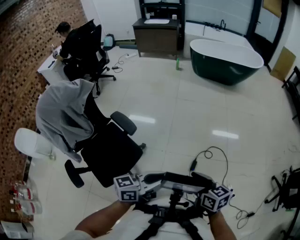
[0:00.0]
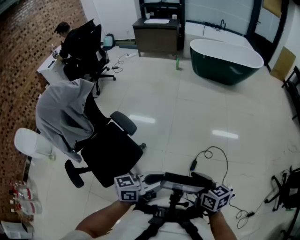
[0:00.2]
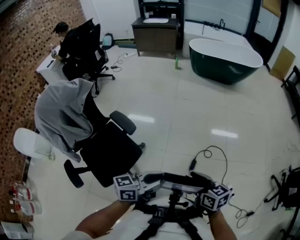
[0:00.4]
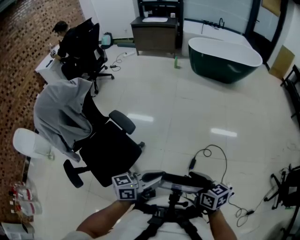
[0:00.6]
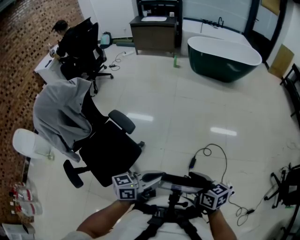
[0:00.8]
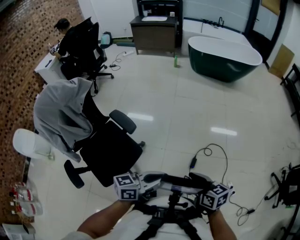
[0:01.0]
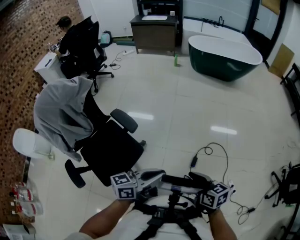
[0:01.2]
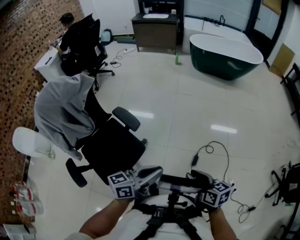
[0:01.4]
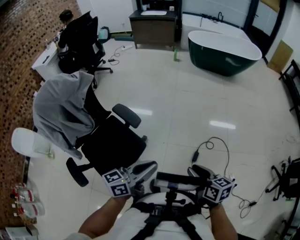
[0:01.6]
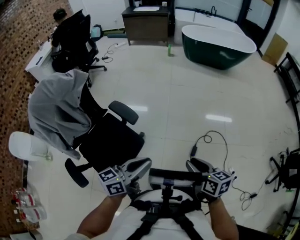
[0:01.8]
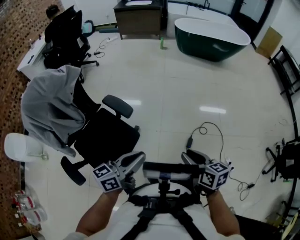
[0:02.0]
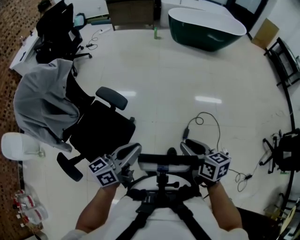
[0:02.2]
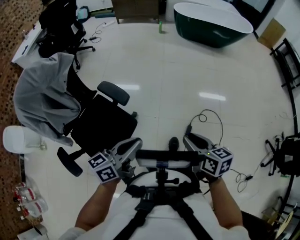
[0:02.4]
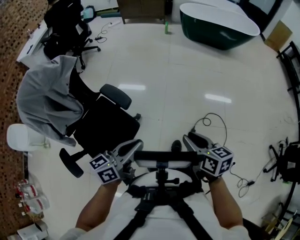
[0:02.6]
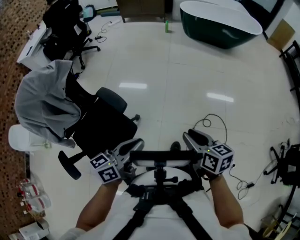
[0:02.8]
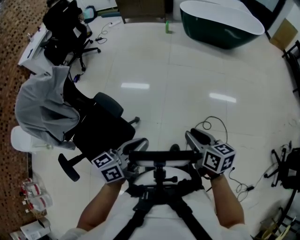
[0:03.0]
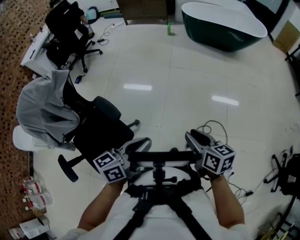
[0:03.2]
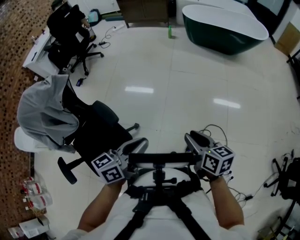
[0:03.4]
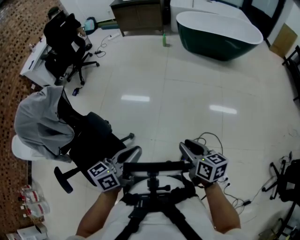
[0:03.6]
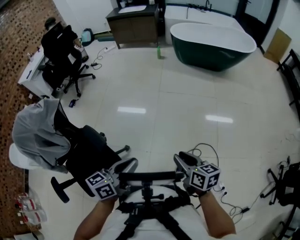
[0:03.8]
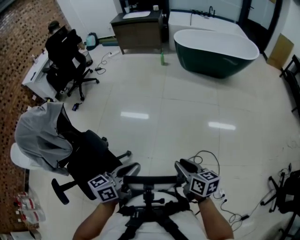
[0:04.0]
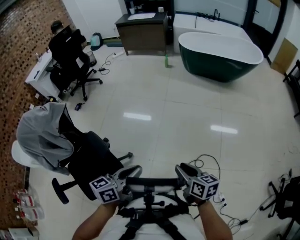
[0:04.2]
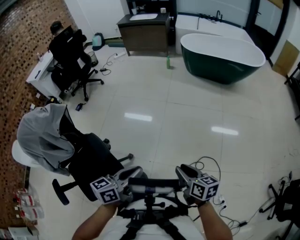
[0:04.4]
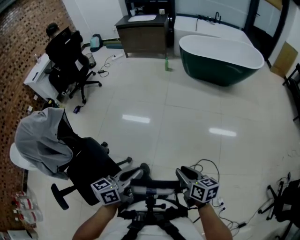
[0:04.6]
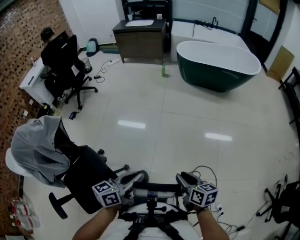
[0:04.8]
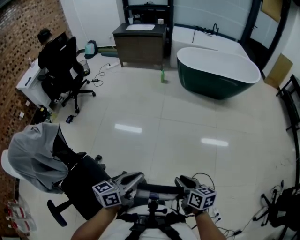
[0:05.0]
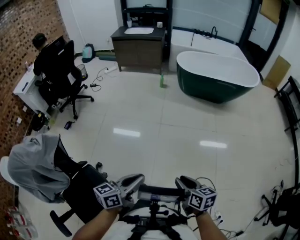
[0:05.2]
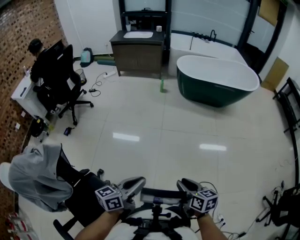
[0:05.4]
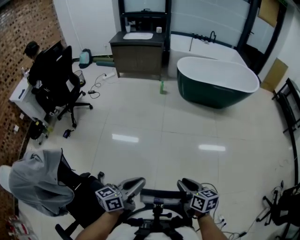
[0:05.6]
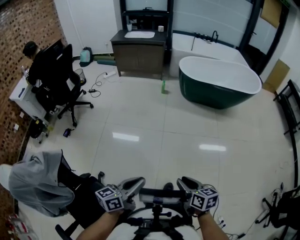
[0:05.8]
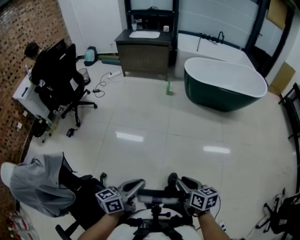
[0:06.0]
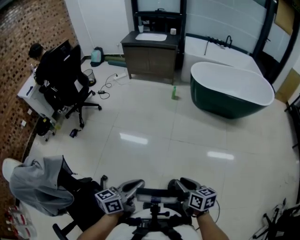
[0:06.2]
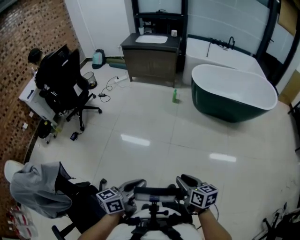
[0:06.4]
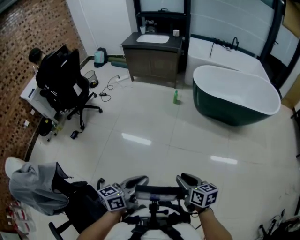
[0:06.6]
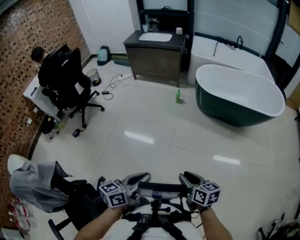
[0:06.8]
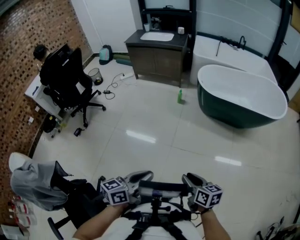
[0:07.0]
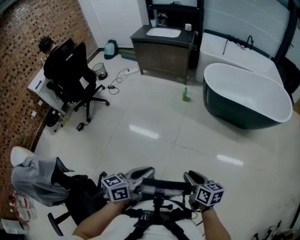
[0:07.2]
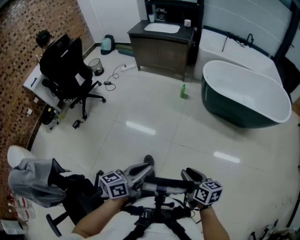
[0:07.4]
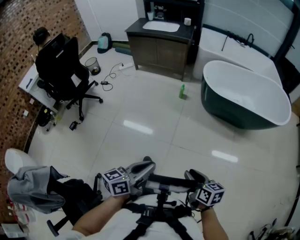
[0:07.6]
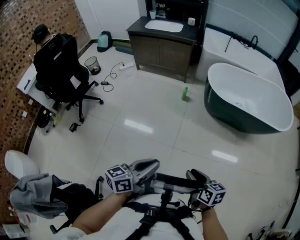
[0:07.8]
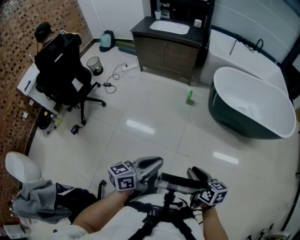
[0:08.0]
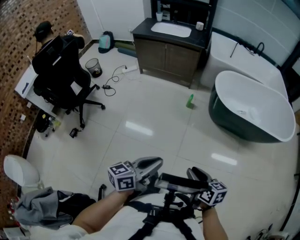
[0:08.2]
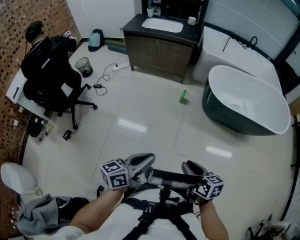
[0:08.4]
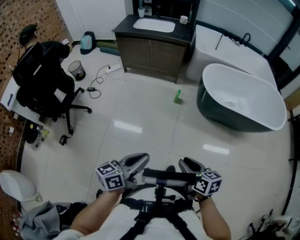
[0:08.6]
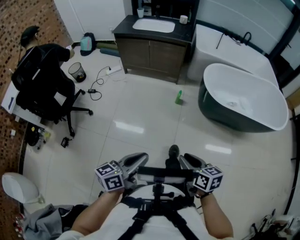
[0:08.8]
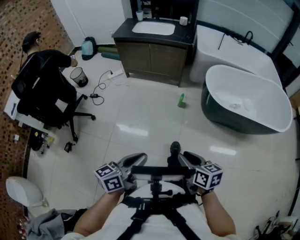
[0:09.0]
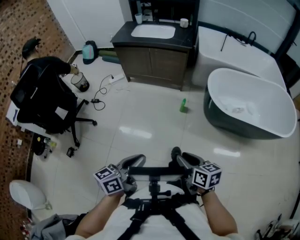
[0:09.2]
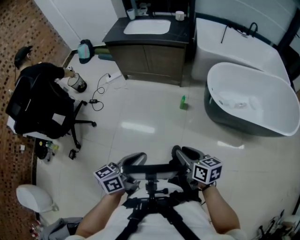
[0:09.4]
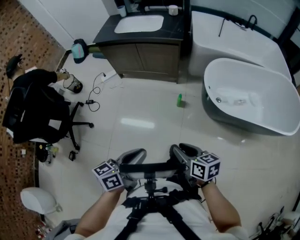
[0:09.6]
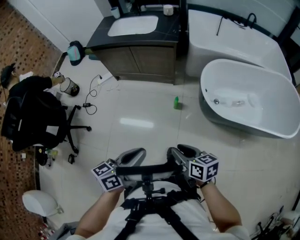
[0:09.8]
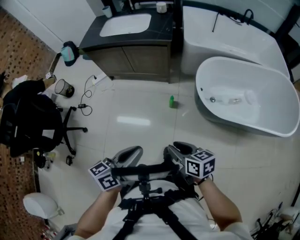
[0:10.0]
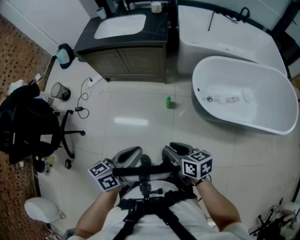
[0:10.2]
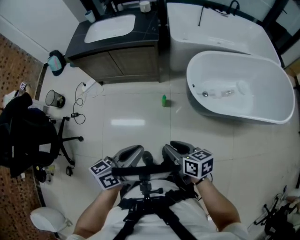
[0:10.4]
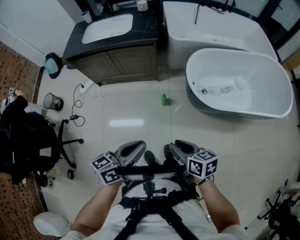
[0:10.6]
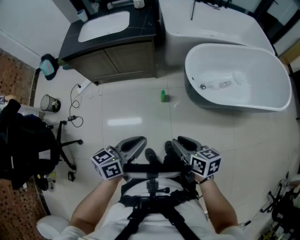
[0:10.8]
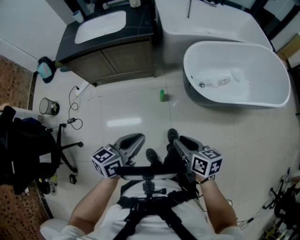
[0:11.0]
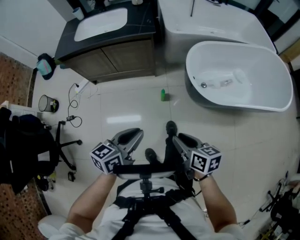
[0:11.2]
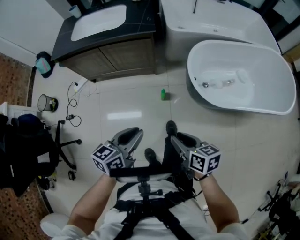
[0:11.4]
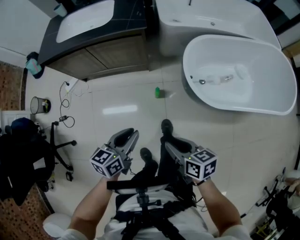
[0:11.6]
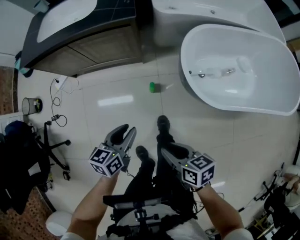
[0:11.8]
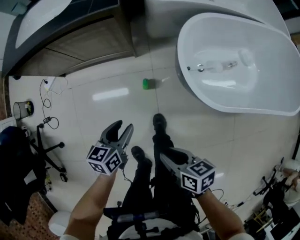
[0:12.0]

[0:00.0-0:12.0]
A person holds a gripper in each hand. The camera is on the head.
0:00.0 to 0:01.6: The left gripper shifts roughly 10 cm to the left.
0:01.6 to 0:03.0: Both grippers travel together forward, about 15 cm.
0:03.0 to 0:04.4: Both grippers travel together forward and to the right, approximately 10 cm.
0:04.4 to 0:06.0: Both grippers travel together forward and to the left, some 30 cm.
0:06.0 to 0:07.6: The two grippers go roughly 30 cm forward.
0:07.6 to 0:09.0: The two grippers go some 30 cm forward and to the left.
0:09.0 to 0:10.4: The grippers both shift forward by roughly 30 cm.
0:10.4 to 0:12.0: The right gripper moves downward and forward, roughly 20 cm. The left gripper heads downward and forward, covering about 35 cm, turns by approximately 30 degrees, and opens its fingers.

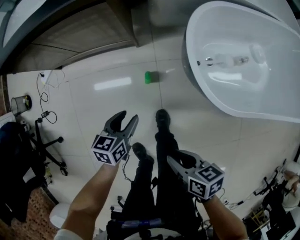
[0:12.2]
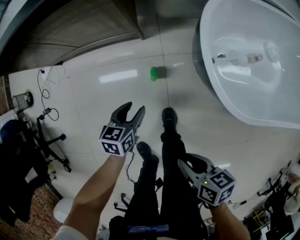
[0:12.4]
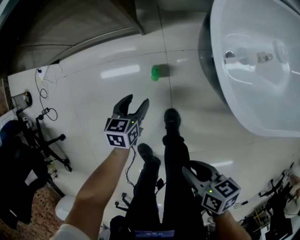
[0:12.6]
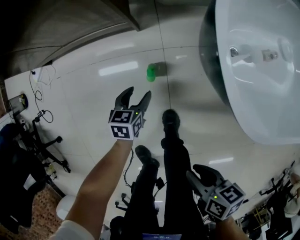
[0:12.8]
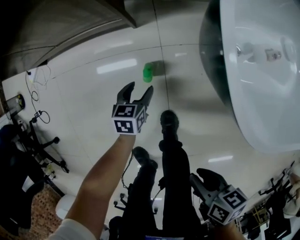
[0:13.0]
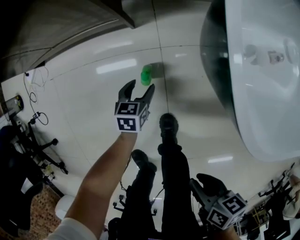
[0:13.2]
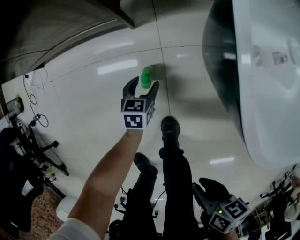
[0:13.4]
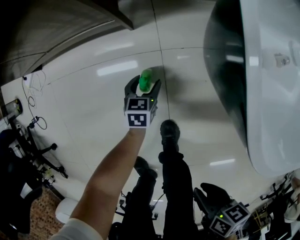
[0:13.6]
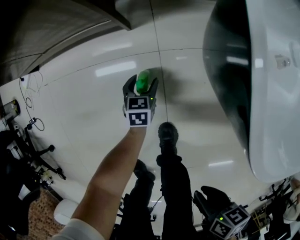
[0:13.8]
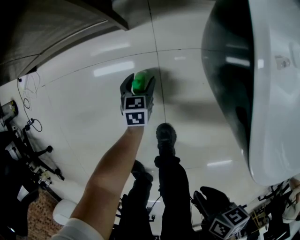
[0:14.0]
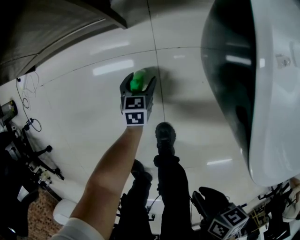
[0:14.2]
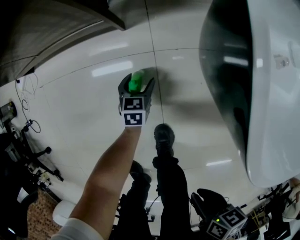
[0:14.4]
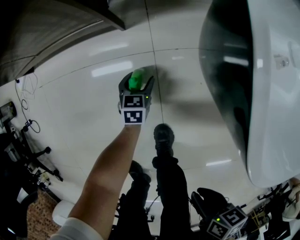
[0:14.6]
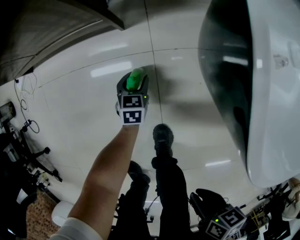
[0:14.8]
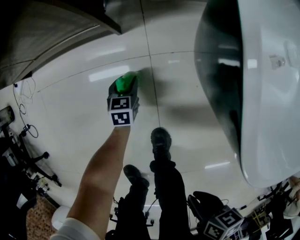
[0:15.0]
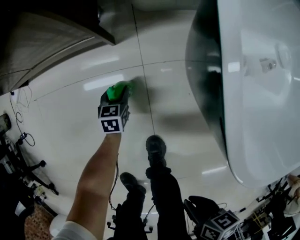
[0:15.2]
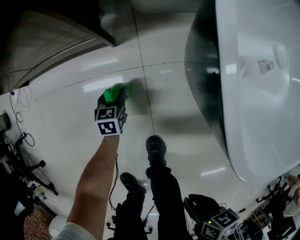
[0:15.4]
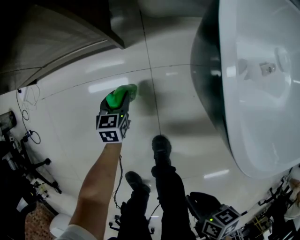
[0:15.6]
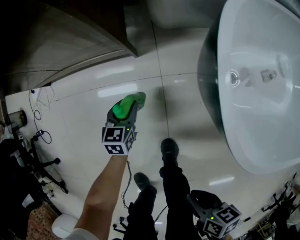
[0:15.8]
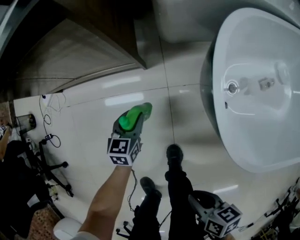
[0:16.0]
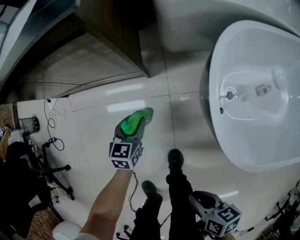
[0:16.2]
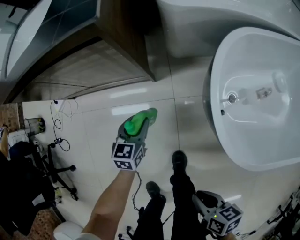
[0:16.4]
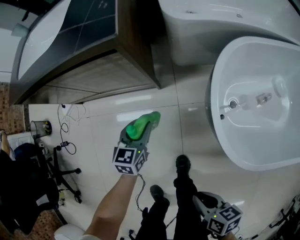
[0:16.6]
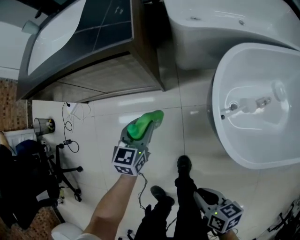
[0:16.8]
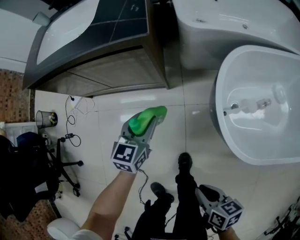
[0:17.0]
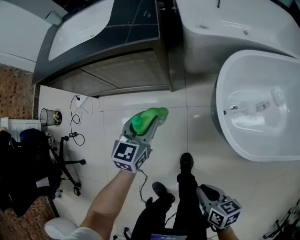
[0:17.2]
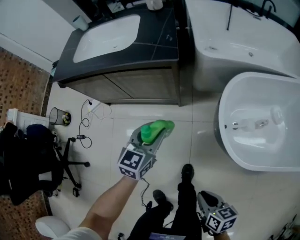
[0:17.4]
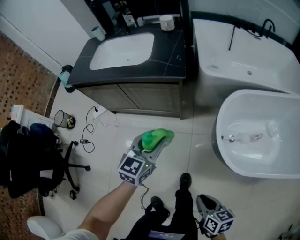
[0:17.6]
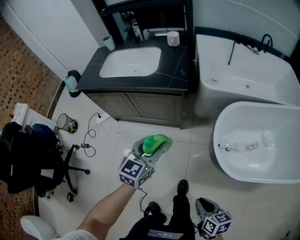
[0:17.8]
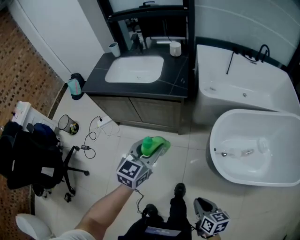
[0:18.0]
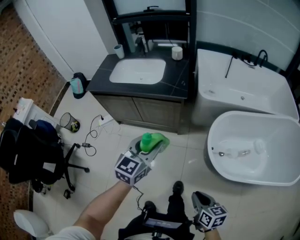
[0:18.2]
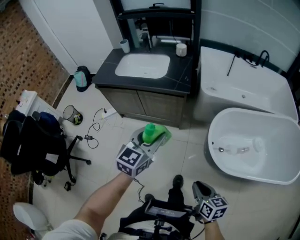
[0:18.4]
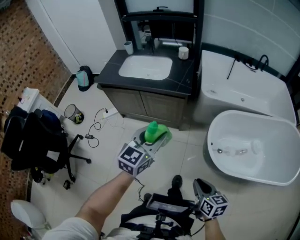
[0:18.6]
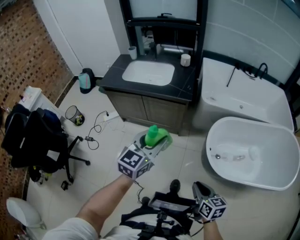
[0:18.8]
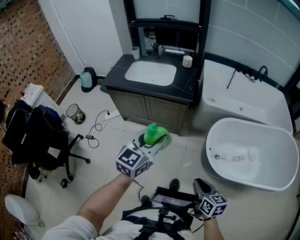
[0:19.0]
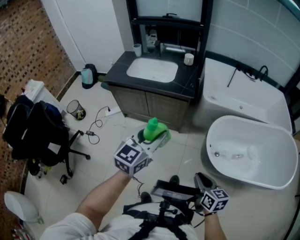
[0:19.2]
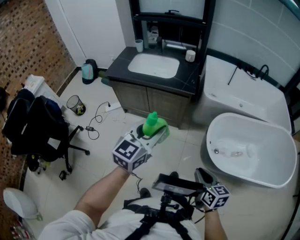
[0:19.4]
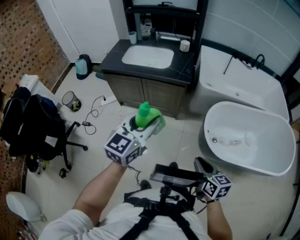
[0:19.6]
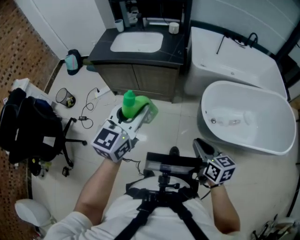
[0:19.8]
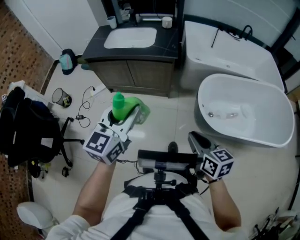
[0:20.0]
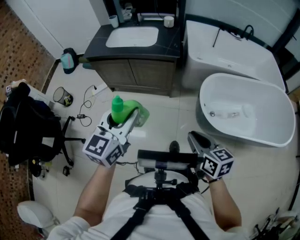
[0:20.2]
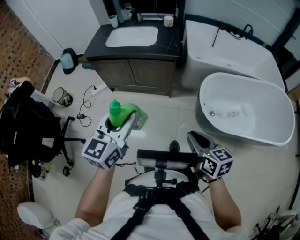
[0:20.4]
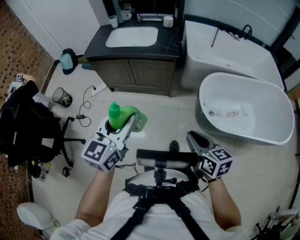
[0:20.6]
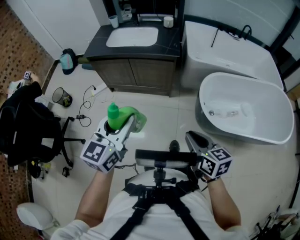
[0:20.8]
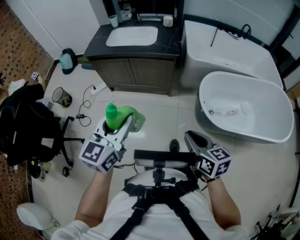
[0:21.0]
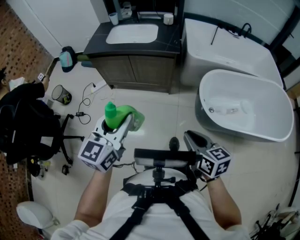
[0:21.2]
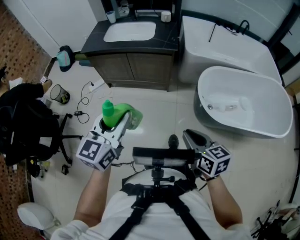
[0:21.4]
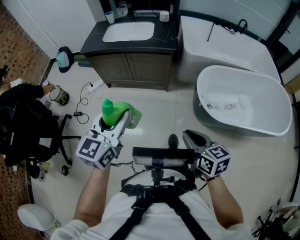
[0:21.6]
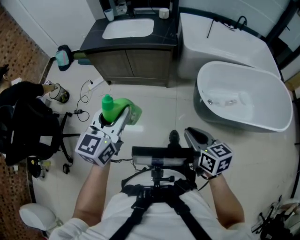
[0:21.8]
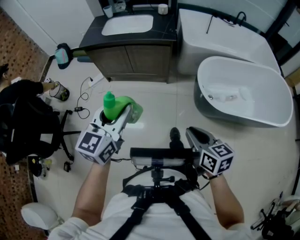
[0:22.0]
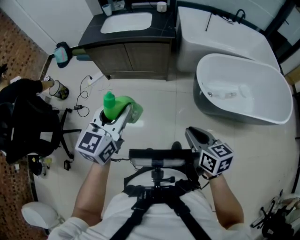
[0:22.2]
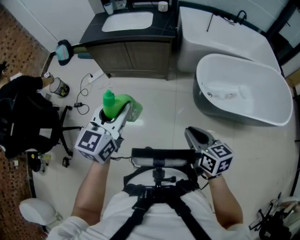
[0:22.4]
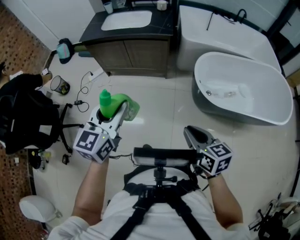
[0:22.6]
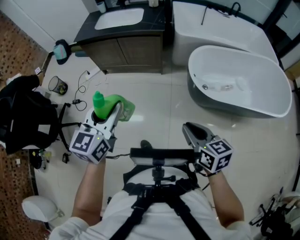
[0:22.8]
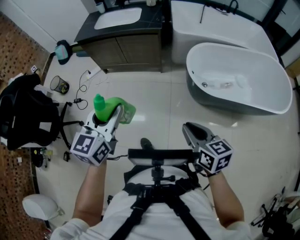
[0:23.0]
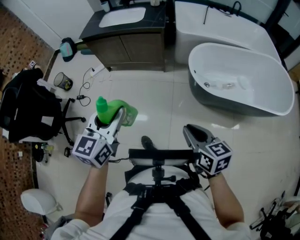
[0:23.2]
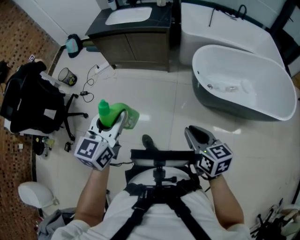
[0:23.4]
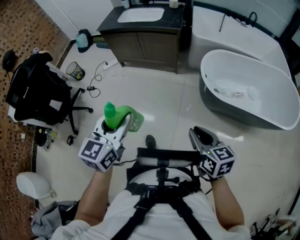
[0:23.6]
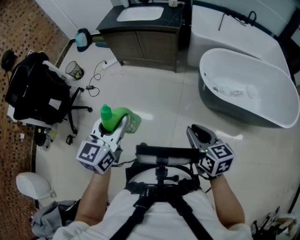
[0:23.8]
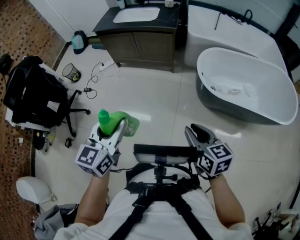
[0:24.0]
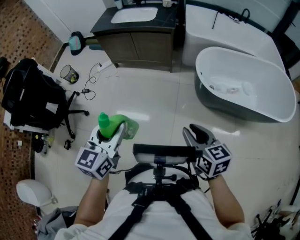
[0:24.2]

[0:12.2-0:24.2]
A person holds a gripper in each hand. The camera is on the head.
0:12.2 to 0:13.8: The left gripper shifts about 35 cm downward; the right gripper moves downward and to the right, roughly 20 cm.
0:13.8 to 0:15.2: The left gripper closes up.
0:15.2 to 0:16.6: The right gripper is displaced upward and forward by about 15 cm, while the left gripper is displaced upward by approximately 35 cm.
0:16.6 to 0:18.2: The left gripper heads upward, covering some 40 cm, and changes its angle by some 20 degrees. Meanwhile the right gripper shifts about 25 cm upward, and changes its angle by roughly 30 degrees.
0:18.2 to 0:19.8: The right gripper is displaced upward by roughly 15 cm; the left gripper heads upward, backward and to the left, covering some 20 cm.
0:19.8 to 0:21.2: The right gripper heads to the left, covering approximately 5 cm. The left gripper moves backward and to the left, about 10 cm.
0:21.2 to 0:22.6: Both grippers move backward, about 10 cm.
0:22.6 to 0:24.2: The right gripper is displaced backward by approximately 10 cm; the left gripper travels backward by some 20 cm.
